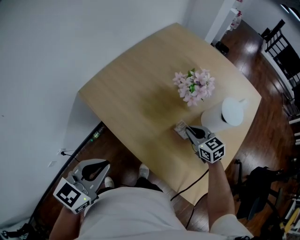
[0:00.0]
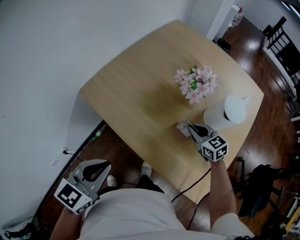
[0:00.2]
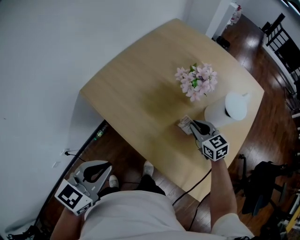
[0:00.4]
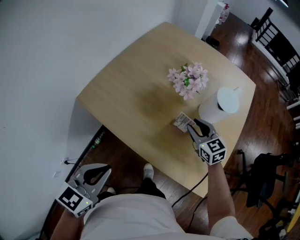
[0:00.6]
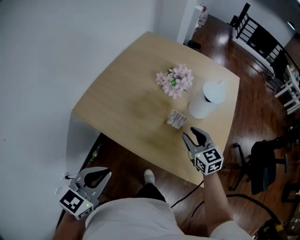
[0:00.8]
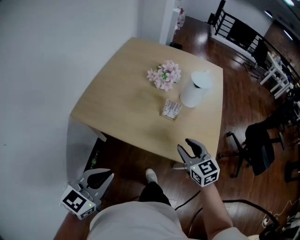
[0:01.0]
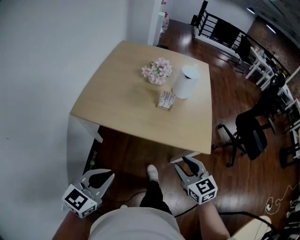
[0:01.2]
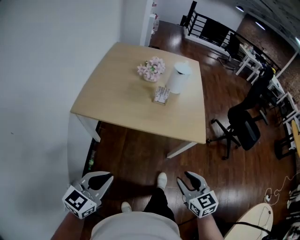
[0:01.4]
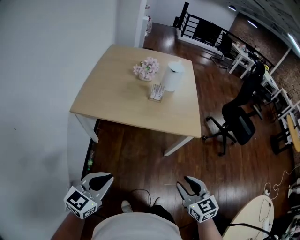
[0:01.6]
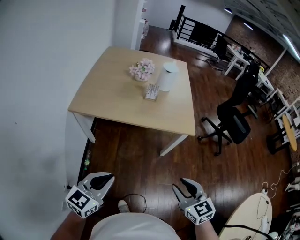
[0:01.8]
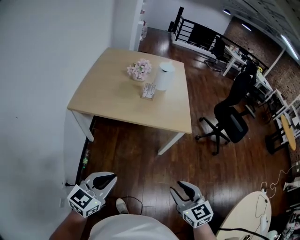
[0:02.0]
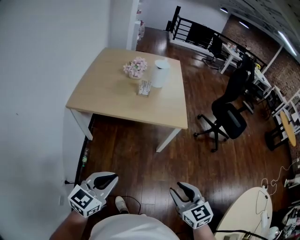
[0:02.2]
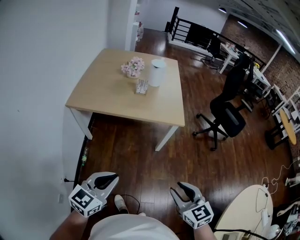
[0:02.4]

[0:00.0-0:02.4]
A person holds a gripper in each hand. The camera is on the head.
0:00.0 to 0:01.2: The right gripper changes place by some 40 cm, turns by some 40 degrees, and opens its fingers. Meanwhile the left gripper shifts by some 20 cm, and rotates roughly 30 degrees.
0:01.2 to 0:02.4: The right gripper goes about 35 cm backward. The left gripper is displaced backward and to the right by approximately 25 cm.

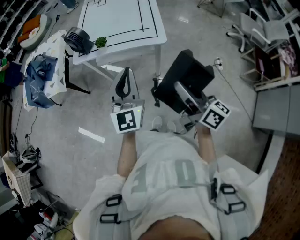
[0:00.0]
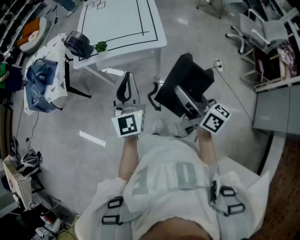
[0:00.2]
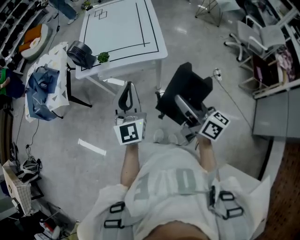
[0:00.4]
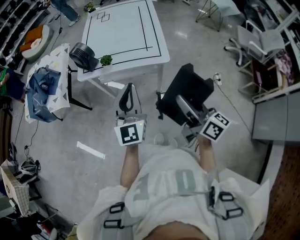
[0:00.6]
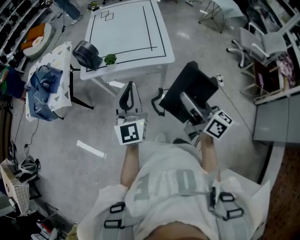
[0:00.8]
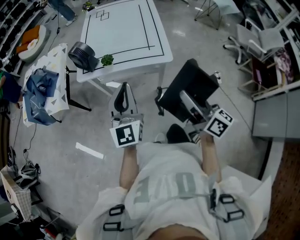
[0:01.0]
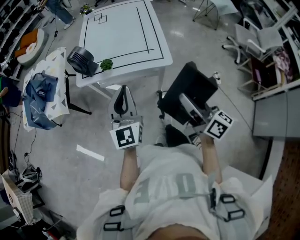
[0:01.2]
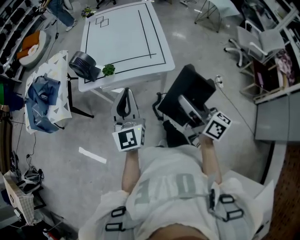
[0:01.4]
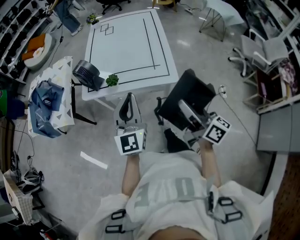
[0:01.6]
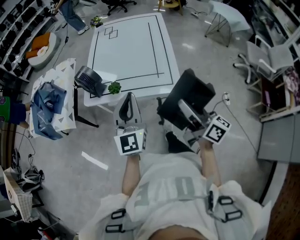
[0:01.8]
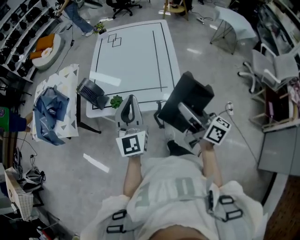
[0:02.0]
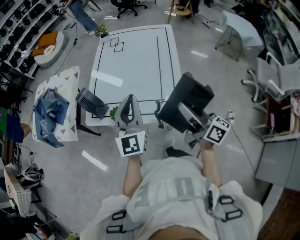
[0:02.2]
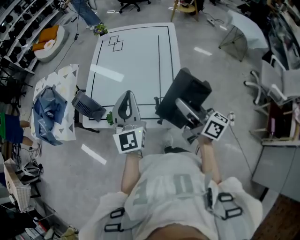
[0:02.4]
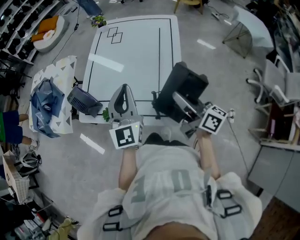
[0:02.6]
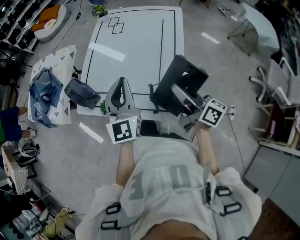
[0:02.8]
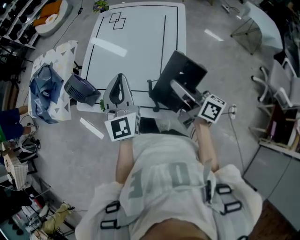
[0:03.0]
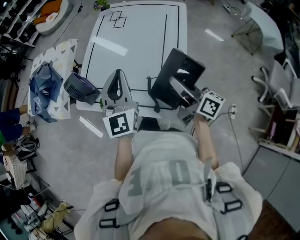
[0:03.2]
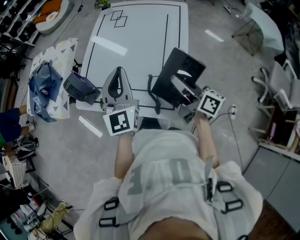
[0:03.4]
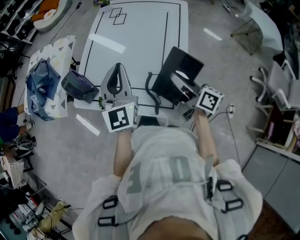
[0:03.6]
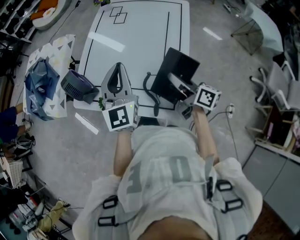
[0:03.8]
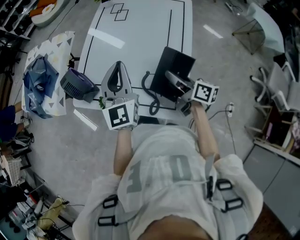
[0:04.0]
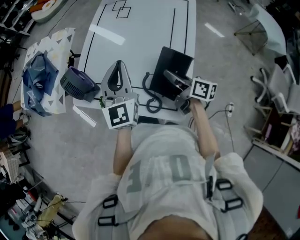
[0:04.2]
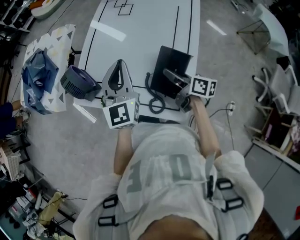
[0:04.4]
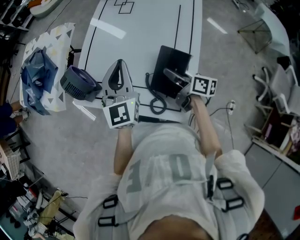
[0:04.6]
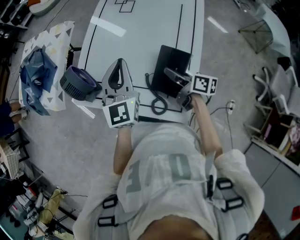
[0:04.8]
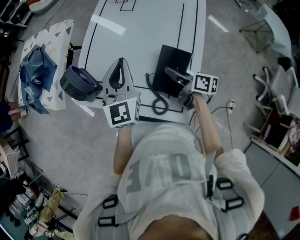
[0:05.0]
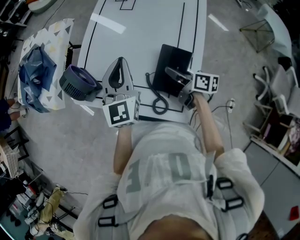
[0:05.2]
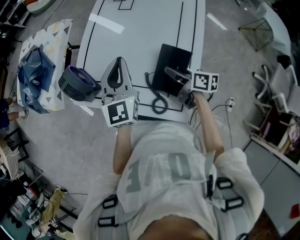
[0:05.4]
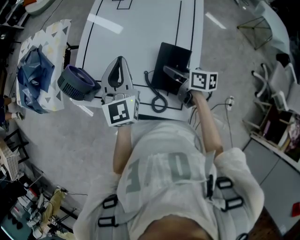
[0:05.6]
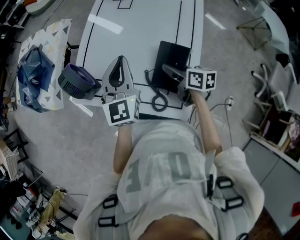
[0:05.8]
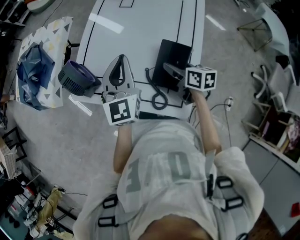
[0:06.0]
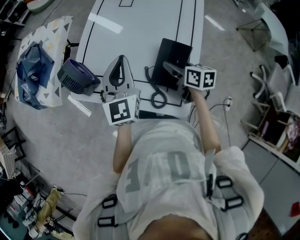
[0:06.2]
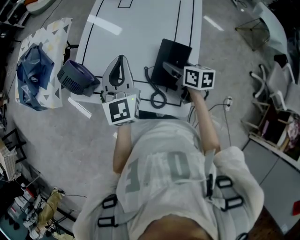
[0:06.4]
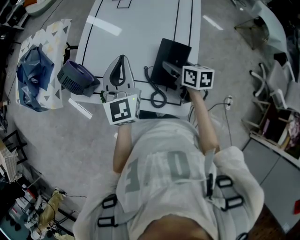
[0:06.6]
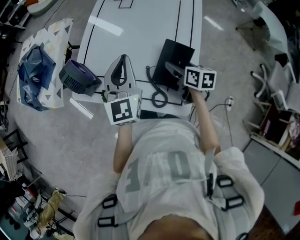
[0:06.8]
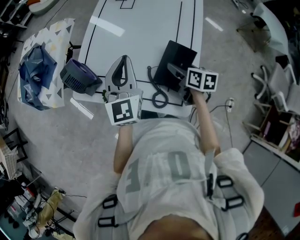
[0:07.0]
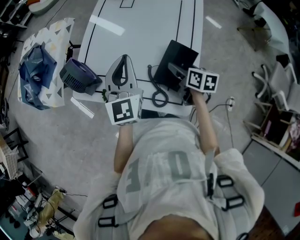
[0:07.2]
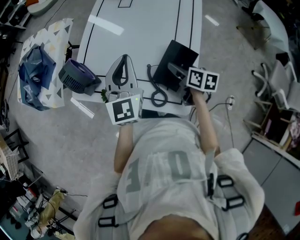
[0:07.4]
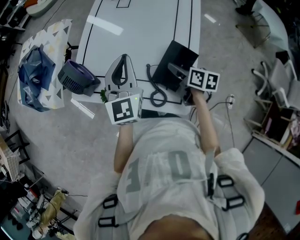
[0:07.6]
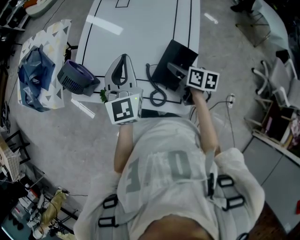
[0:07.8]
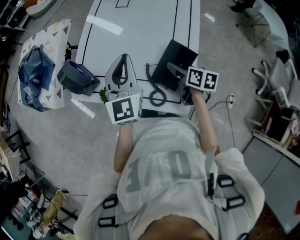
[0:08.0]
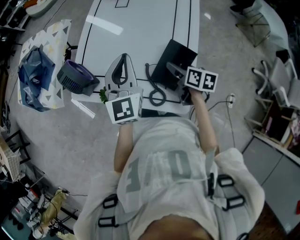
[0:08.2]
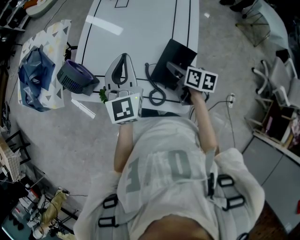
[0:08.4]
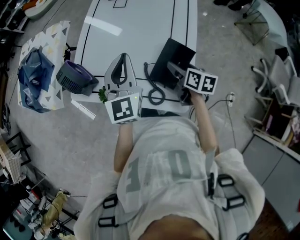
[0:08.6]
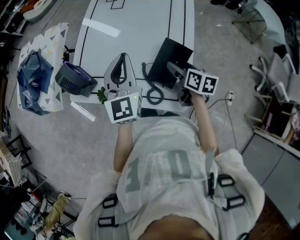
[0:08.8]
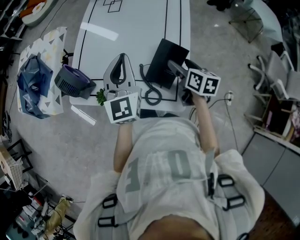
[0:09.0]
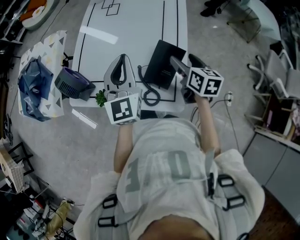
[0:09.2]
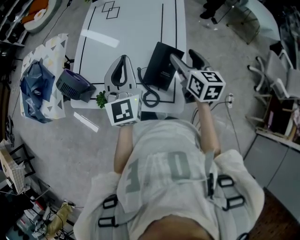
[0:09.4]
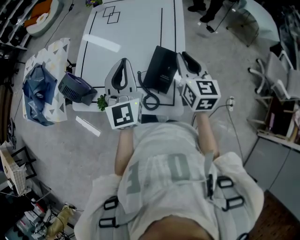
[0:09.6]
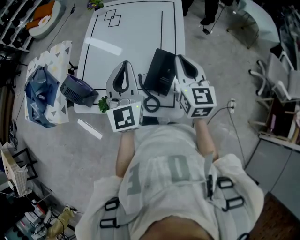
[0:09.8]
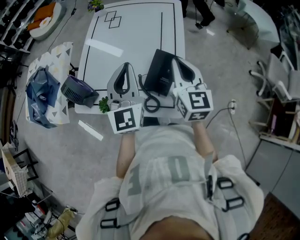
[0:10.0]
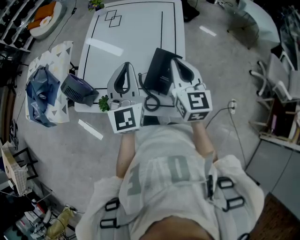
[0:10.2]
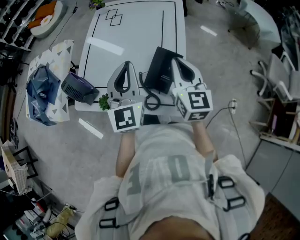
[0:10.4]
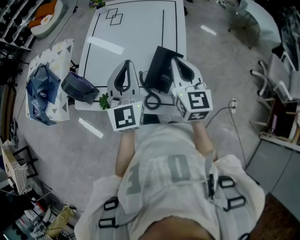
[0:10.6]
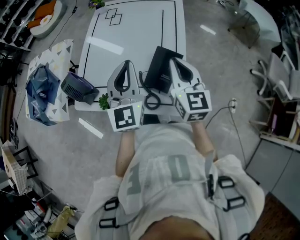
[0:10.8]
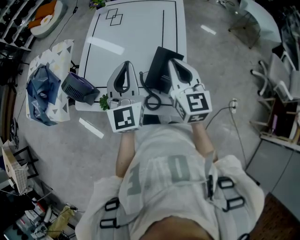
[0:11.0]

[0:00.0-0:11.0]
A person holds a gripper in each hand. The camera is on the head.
0:00.0 to 0:01.6: The grippers both shift forward by roughly 15 cm.
0:01.6 to 0:03.2: The left gripper travels forward and to the right by roughly 30 cm, while the right gripper heads forward, covering about 35 cm, and changes its angle by about 20 degrees.
0:03.2 to 0:04.8: The right gripper travels downward and forward by roughly 15 cm, and turns by about 30 degrees, while the left gripper moves forward and downward, approximately 10 cm.
0:04.8 to 0:06.2: The right gripper turns by about 20 degrees.
0:06.2 to 0:07.8: There are only small adjustments of the grippers.
0:07.8 to 0:09.4: The right gripper shifts about 15 cm upward and to the right, and turns by roughly 30 degrees. Meanwhile the left gripper ends up approximately 5 cm from where it was.
0:09.4 to 0:11.0: The right gripper heads upward, covering approximately 5 cm, rotates some 20 degrees, and closes.

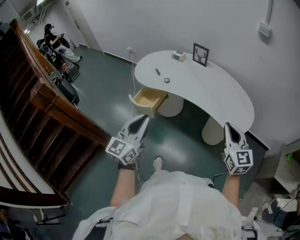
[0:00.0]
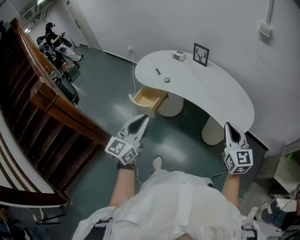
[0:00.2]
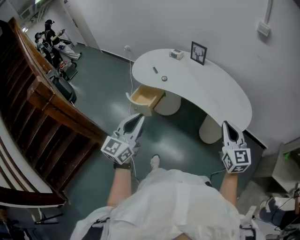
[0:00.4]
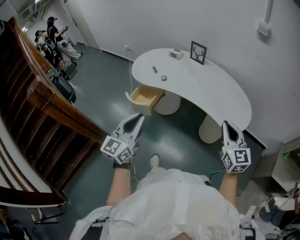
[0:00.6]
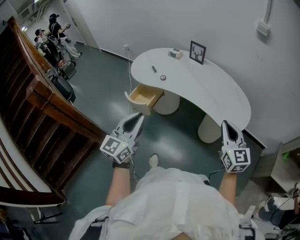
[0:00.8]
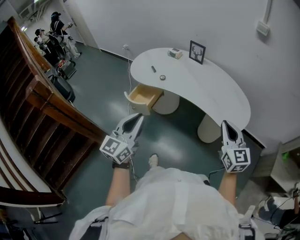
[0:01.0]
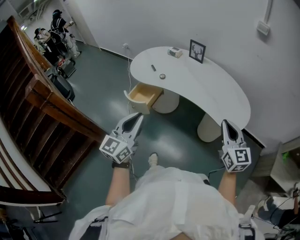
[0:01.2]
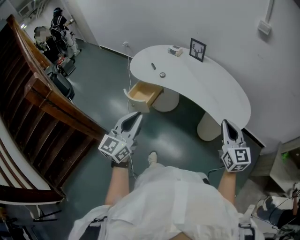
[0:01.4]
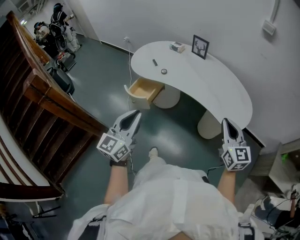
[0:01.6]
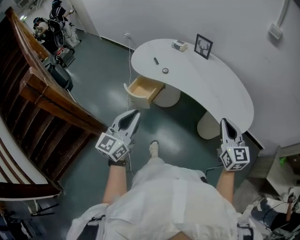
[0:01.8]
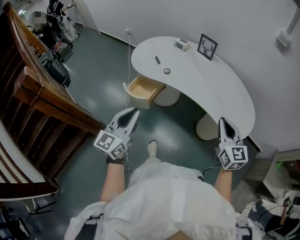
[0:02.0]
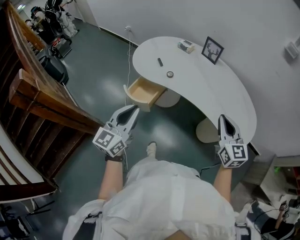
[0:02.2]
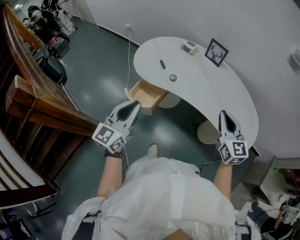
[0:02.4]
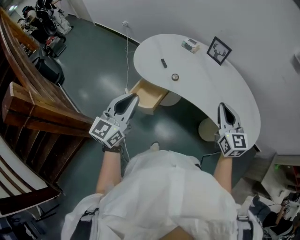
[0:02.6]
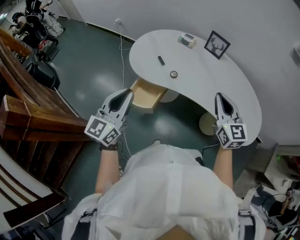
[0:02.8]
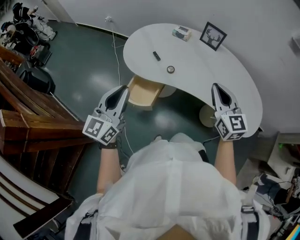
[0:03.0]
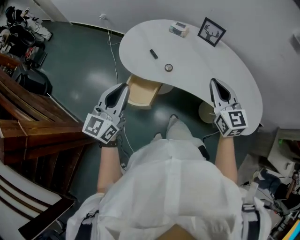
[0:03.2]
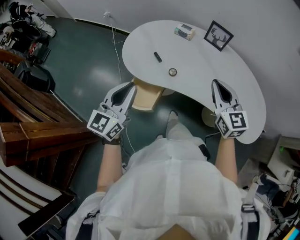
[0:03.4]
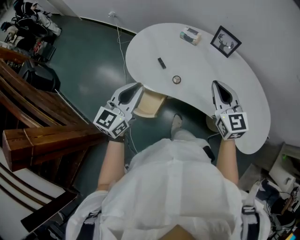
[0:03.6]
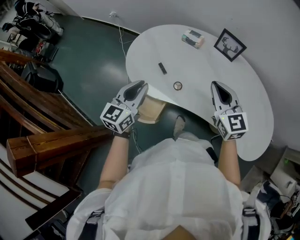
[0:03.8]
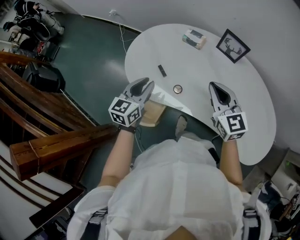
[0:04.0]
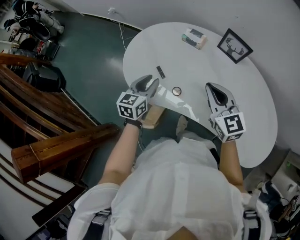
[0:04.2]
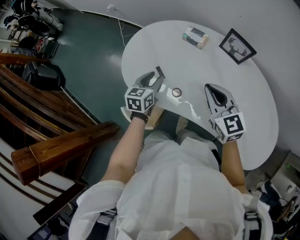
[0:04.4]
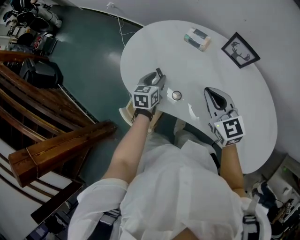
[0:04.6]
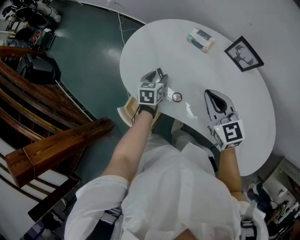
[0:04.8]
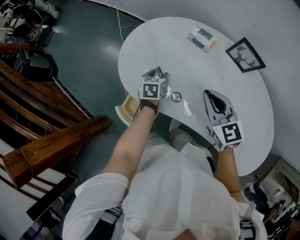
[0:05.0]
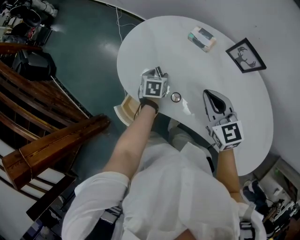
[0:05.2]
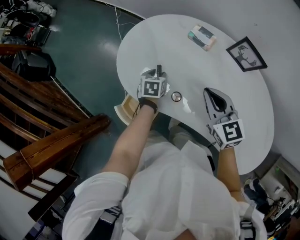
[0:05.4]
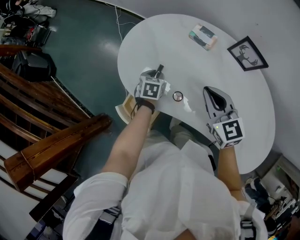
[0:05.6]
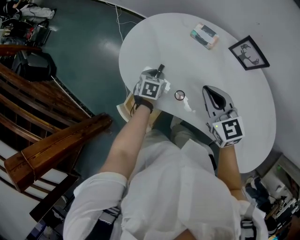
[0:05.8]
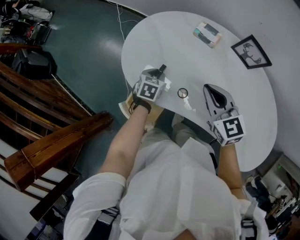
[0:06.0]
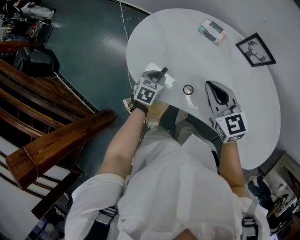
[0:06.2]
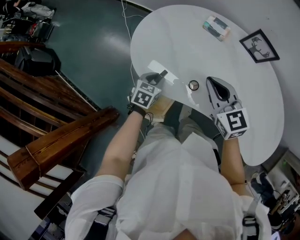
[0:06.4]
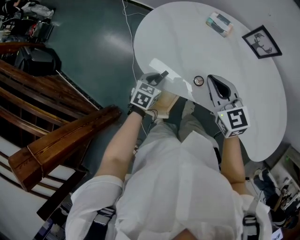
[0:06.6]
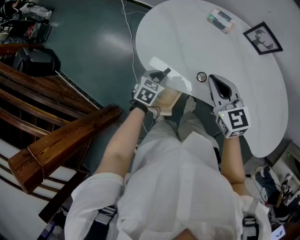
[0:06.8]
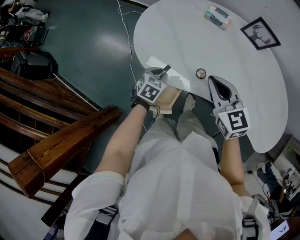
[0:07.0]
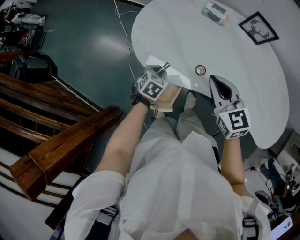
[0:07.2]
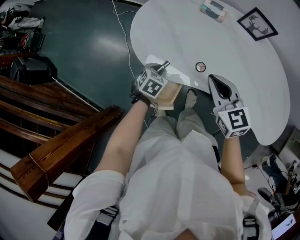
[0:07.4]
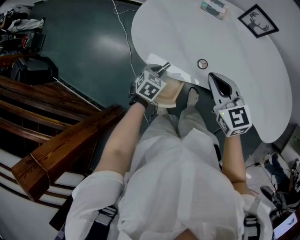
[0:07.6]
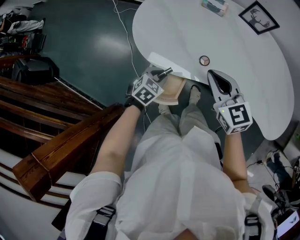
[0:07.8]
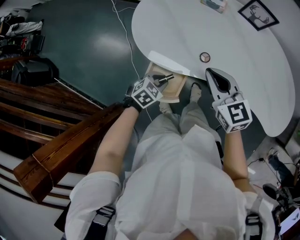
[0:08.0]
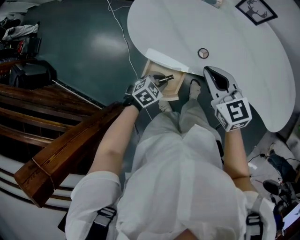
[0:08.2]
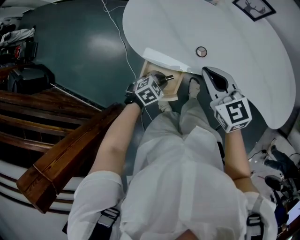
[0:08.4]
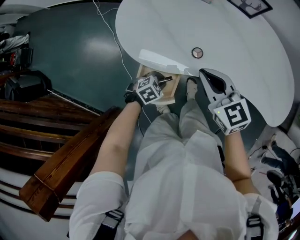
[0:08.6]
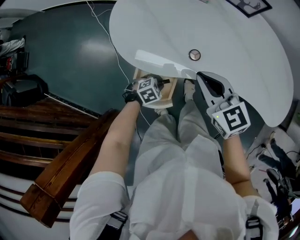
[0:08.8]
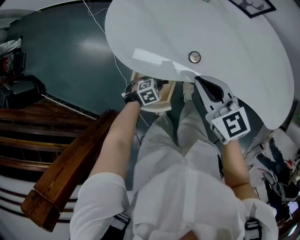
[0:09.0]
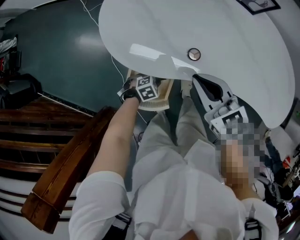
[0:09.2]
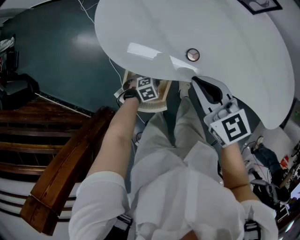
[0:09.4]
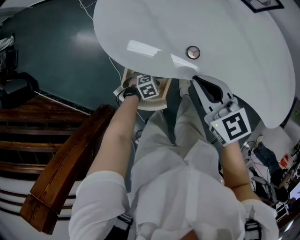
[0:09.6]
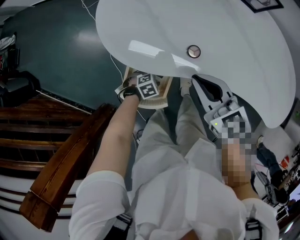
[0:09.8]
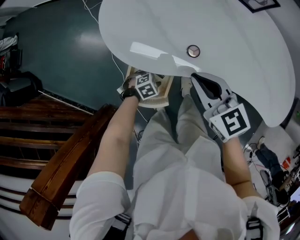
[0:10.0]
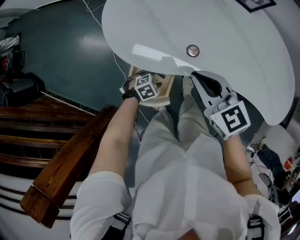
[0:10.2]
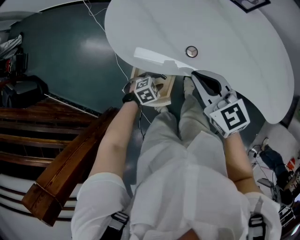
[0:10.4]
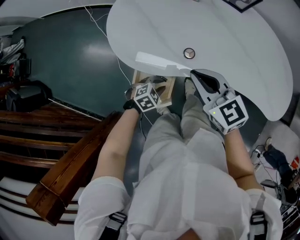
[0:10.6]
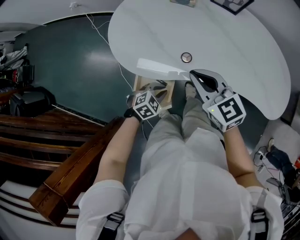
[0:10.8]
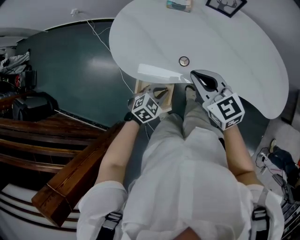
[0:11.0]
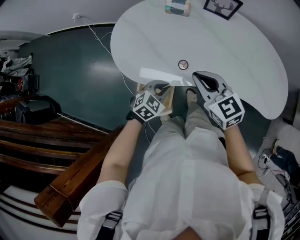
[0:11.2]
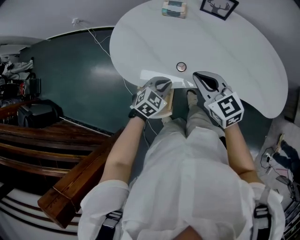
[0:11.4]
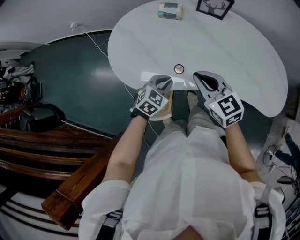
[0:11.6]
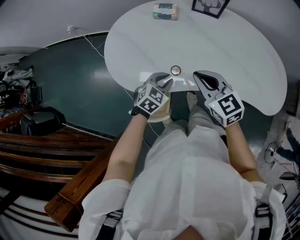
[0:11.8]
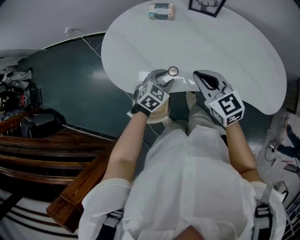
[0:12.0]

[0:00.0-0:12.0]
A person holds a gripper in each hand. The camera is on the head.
0:00.0 to 0:01.6: The grippers make only small movements.
0:01.6 to 0:03.0: Both grippers move forward and to the left, some 35 cm.
0:03.0 to 0:04.4: The left gripper moves forward and downward, some 40 cm, tips its fingers downward by some 30 degrees, and opens up. Meanwhile the right gripper shifts about 25 cm forward.
0:04.4 to 0:06.0: The left gripper shifts about 10 cm downward, and turns by some 20 degrees, while the right gripper goes some 5 cm to the left.
0:06.0 to 0:07.6: The grippers both shift backward and to the left by about 10 cm. The left gripper turns by approximately 20 degrees.
0:07.6 to 0:09.0: The right gripper moves roughly 5 cm, while the left gripper shifts approximately 15 cm downward, and turns by some 40 degrees.
0:09.0 to 0:10.4: The grippers make only small movements.
0:10.4 to 0:12.0: The left gripper shifts approximately 25 cm upward, forward and to the right, turns by some 20 degrees, and closes, then opens again. Meanwhile the right gripper is displaced to the right and forward by about 10 cm.
